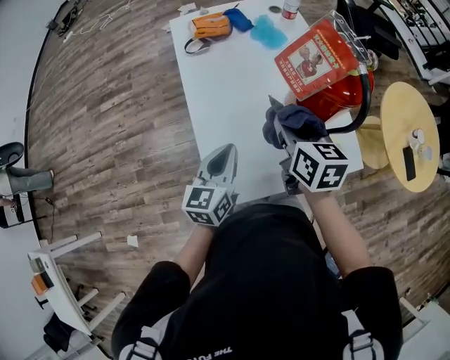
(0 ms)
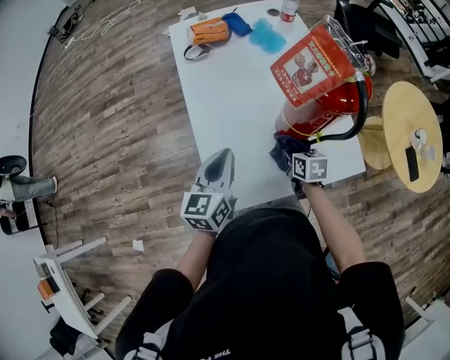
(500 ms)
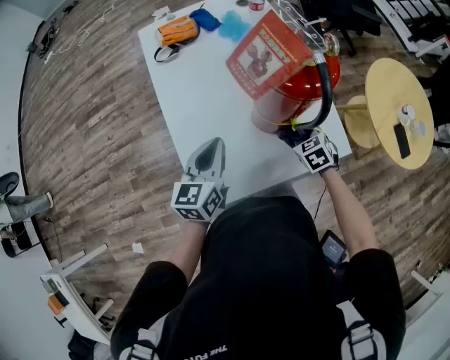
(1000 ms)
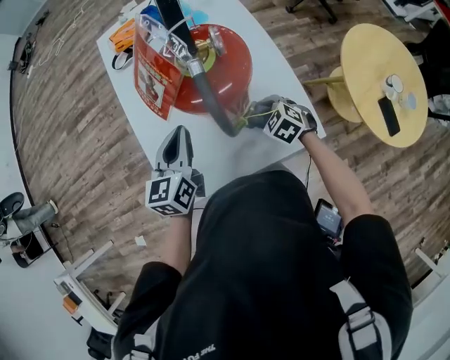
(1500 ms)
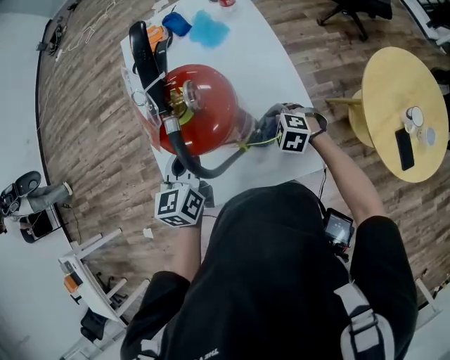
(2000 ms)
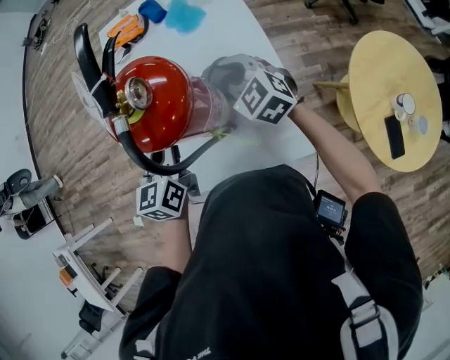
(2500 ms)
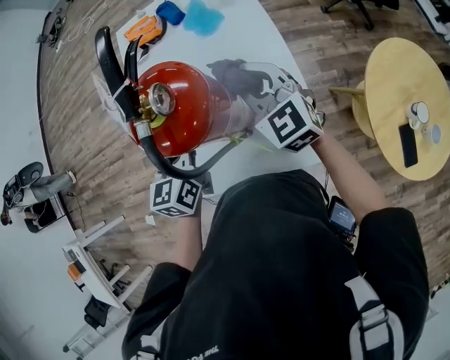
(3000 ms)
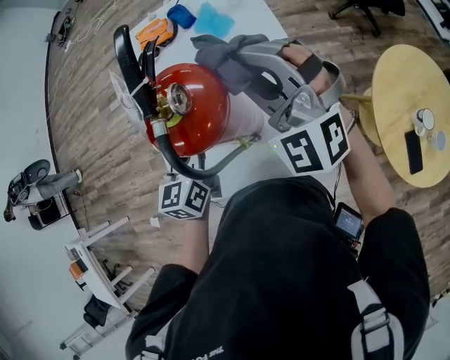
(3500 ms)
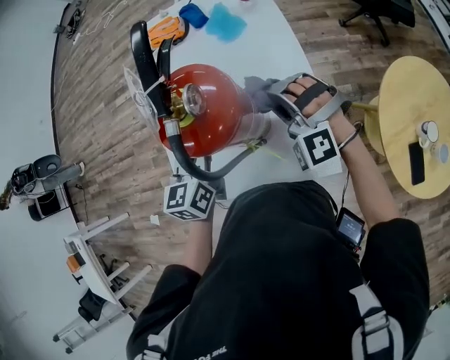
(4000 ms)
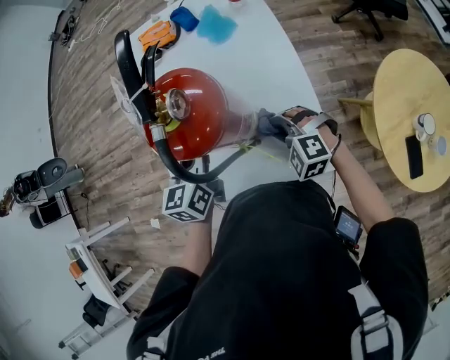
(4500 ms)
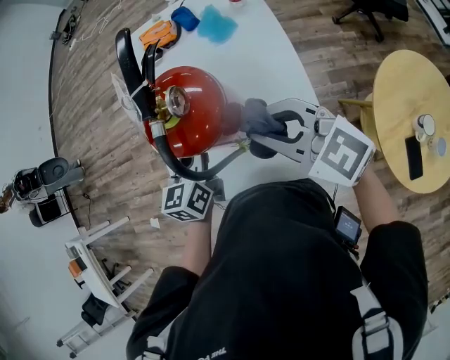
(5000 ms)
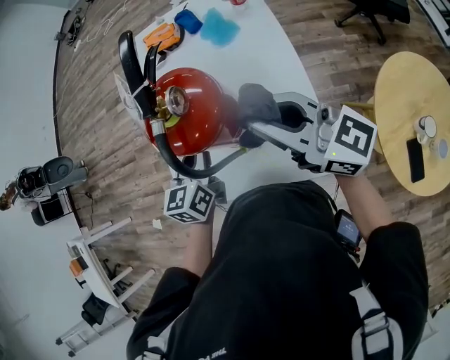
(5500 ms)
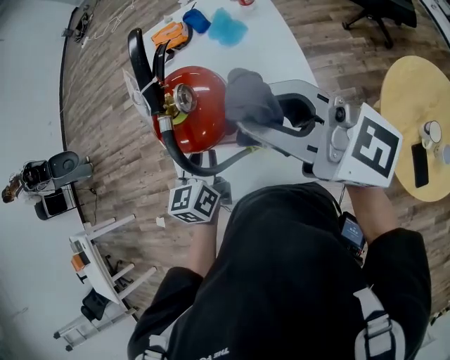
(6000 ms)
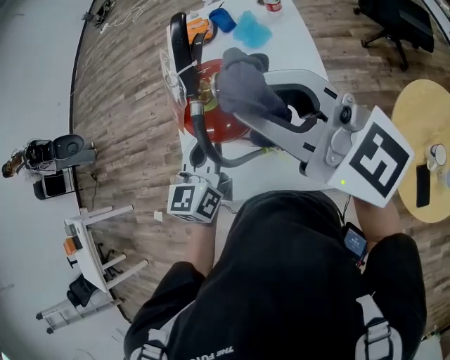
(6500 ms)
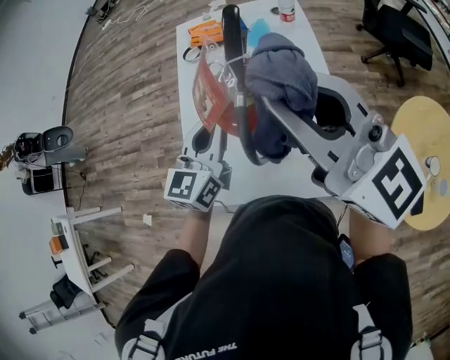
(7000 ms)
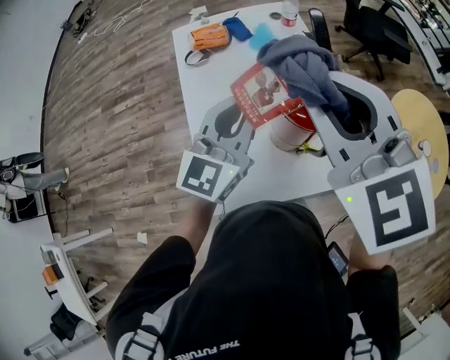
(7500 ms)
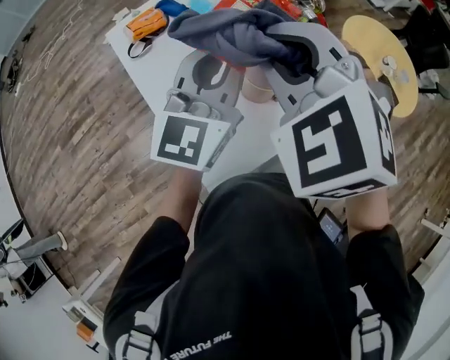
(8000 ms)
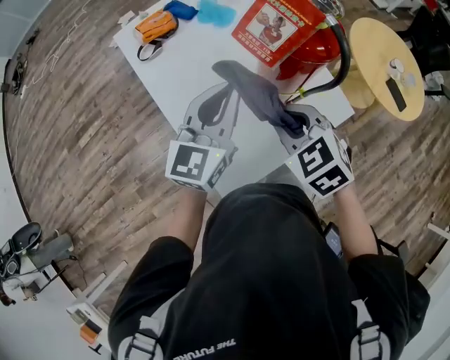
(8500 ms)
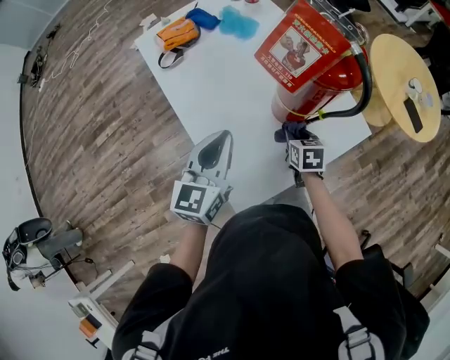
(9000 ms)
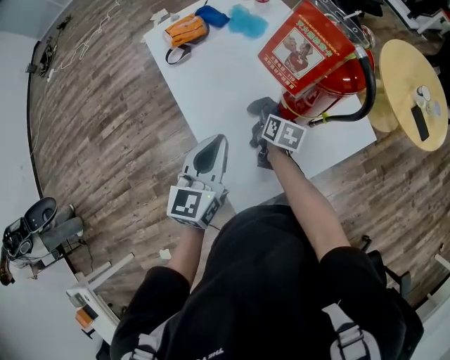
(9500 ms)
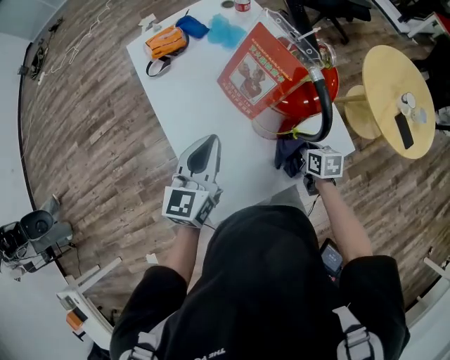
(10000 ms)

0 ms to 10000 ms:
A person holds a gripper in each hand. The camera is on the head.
0 ms to 2000 ms: The left gripper moves approximately 15 cm, while the right gripper is displaced downward by some 25 cm, and rolls counterclockwise, seen from behind, by some 60 degrees.
2000 ms to 4000 ms: The right gripper heads upward, covering about 20 cm, and changes its angle by some 50 degrees.
4000 ms to 6000 ms: The right gripper shifts roughly 25 cm upward, and points its fingers approximately 50 degrees further upward.
6000 ms to 8000 ms: The left gripper goes approximately 20 cm upward, and rotates about 50 degrees, while the right gripper ends up some 20 cm from where it was, and tilts its fingers roughly 50 degrees downward.
8000 ms to 10000 ms: The left gripper goes about 15 cm downward, and swivels about 30 degrees. The right gripper travels downward and to the right by approximately 40 cm, and twists approximately 70 degrees clockwise, seen from behind.

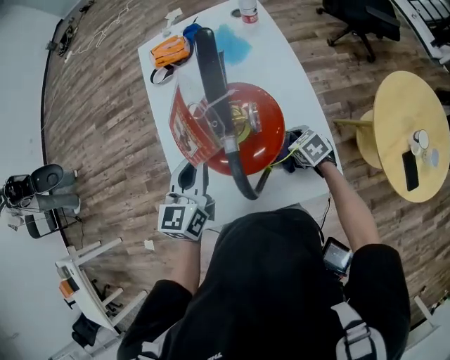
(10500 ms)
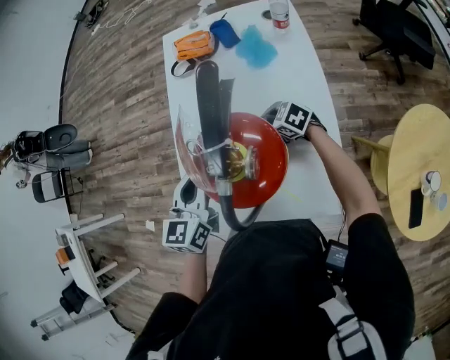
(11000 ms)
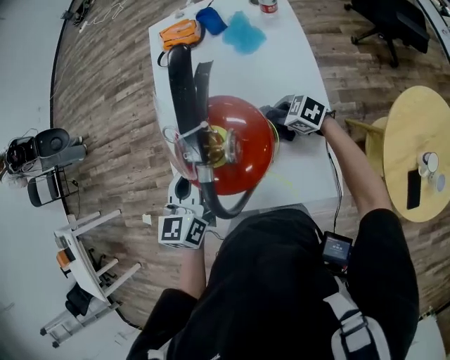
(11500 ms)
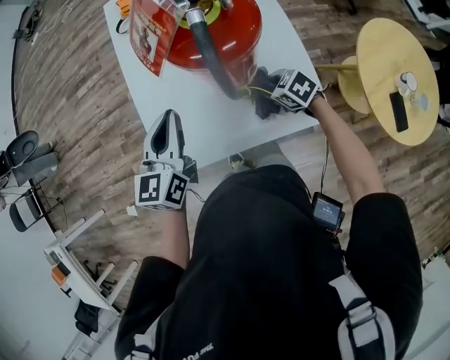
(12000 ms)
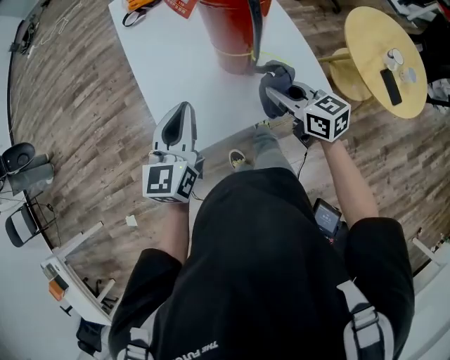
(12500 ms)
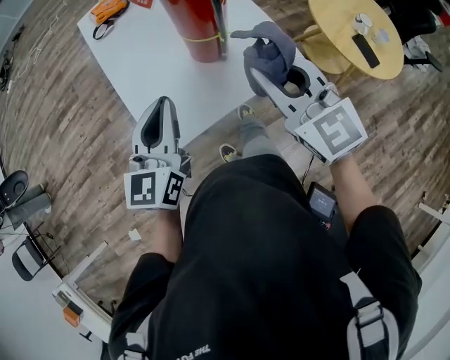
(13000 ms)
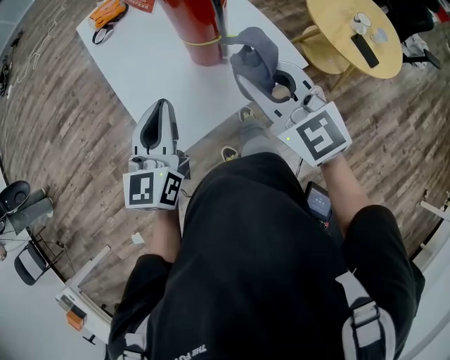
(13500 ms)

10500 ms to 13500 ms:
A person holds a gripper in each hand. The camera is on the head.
10500 ms to 12000 ms: The right gripper travels to the left by approximately 5 cm, and goes forward and returns, some 15 cm each way, while the left gripper shifts roughly 10 cm backward and to the left.
12000 ms to 13500 ms: The left gripper ends up some 10 cm from where it was; the right gripper shifts roughly 30 cm upward, and tips its fingers upward by approximately 40 degrees.

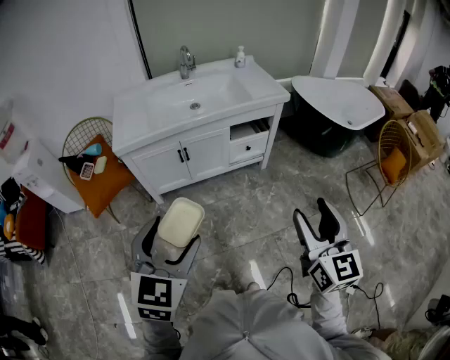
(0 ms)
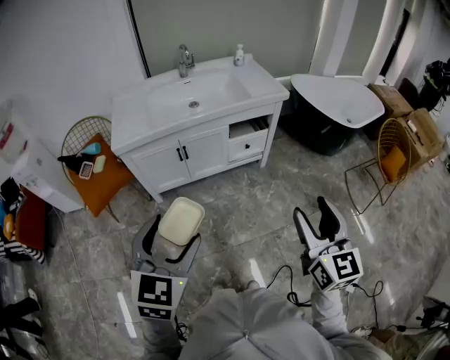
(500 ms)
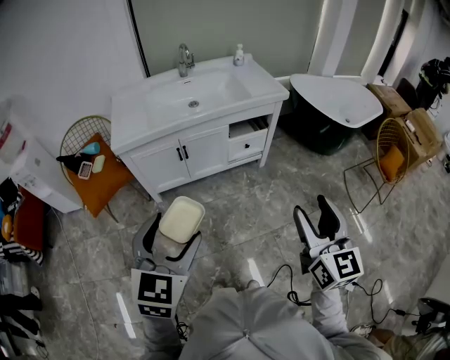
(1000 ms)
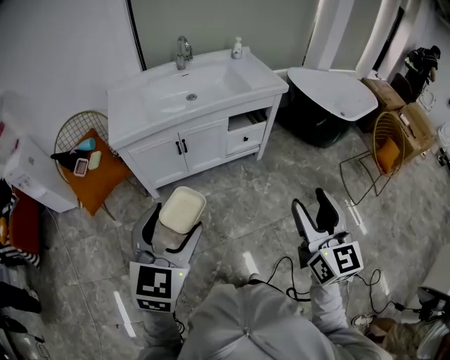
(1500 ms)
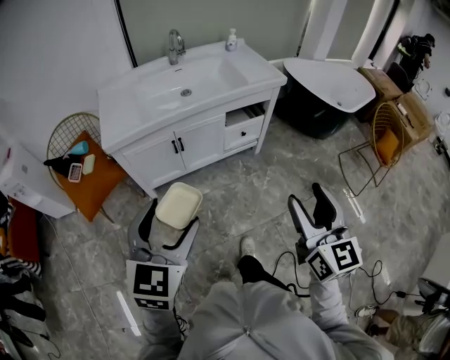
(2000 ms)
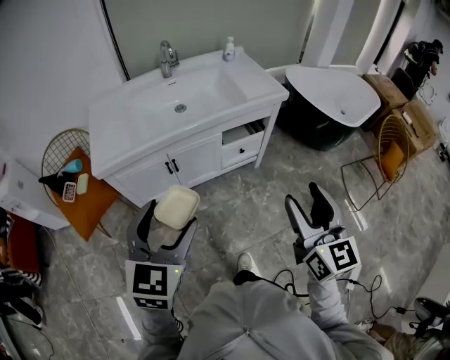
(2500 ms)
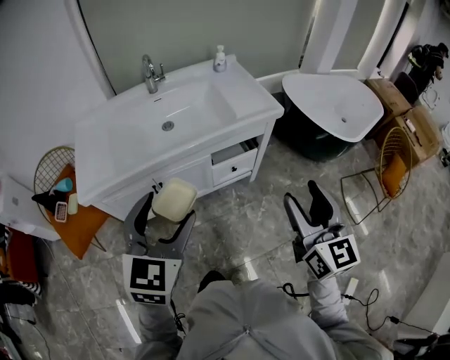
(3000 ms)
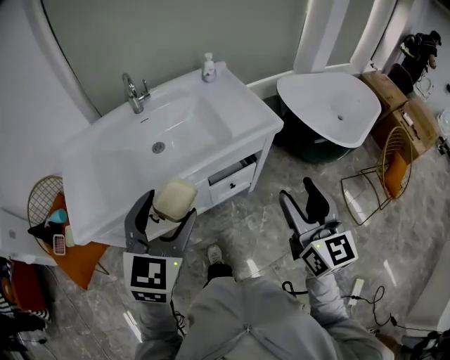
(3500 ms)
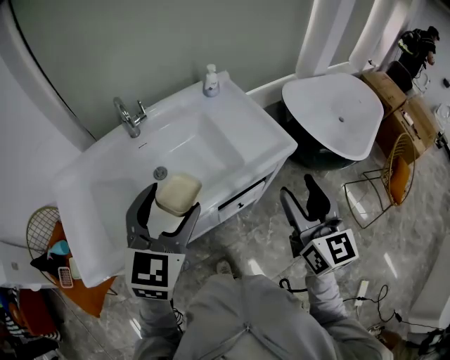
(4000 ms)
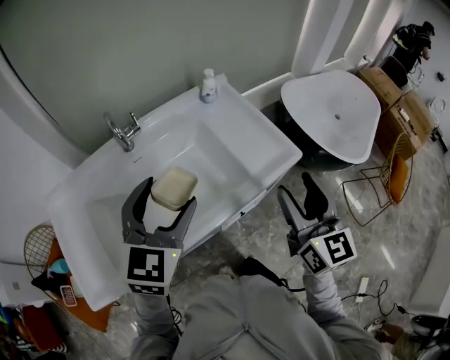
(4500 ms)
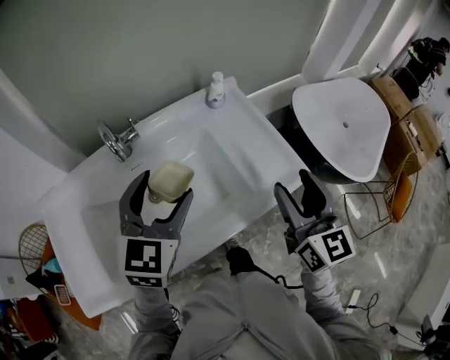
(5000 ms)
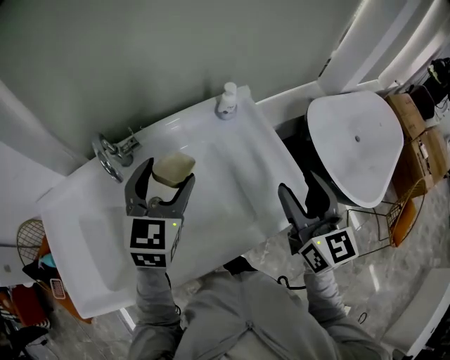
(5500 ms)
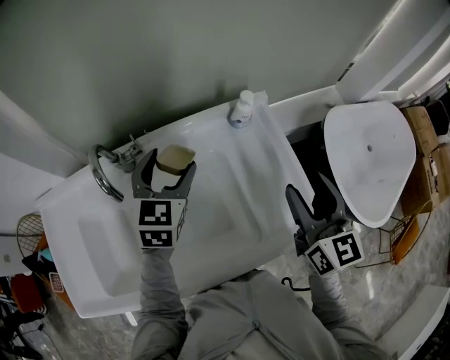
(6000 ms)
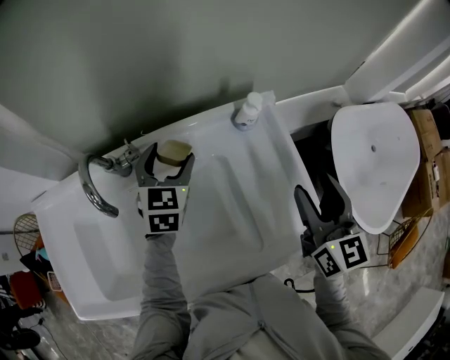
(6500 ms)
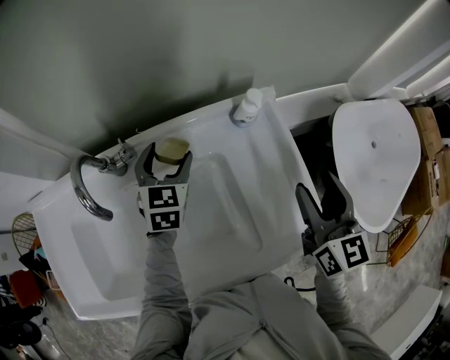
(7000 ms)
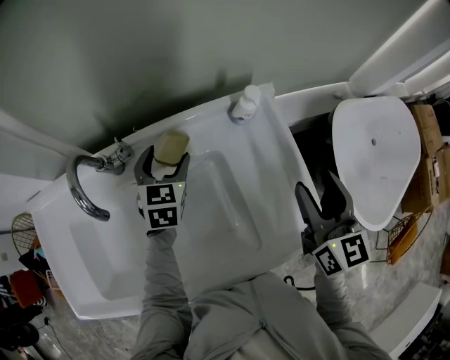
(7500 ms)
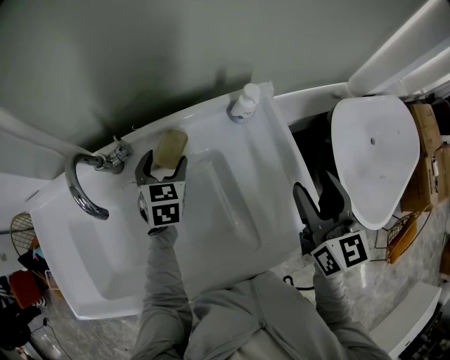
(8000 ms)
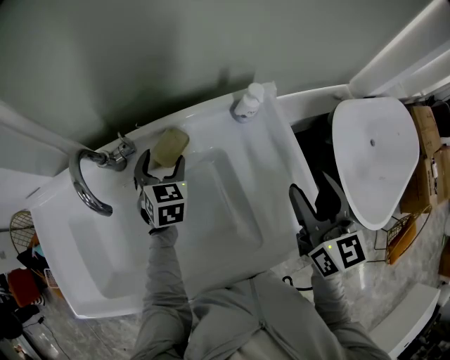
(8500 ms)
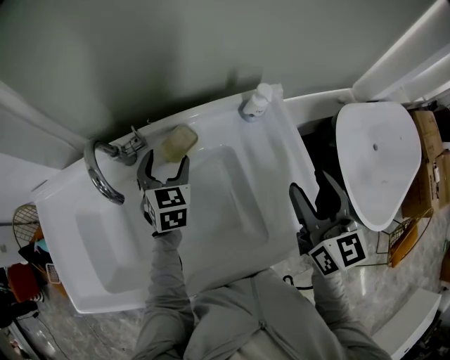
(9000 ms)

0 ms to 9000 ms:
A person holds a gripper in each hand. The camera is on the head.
0 ms to 2000 ms: The right gripper goes some 5 cm to the left. Meanwhile the left gripper heads forward and to the left, covering about 10 cm.
2000 ms to 4500 ms: The two grippers travel together, forward, about 60 cm.
4500 ms to 7000 ms: The left gripper is displaced forward and downward by approximately 40 cm, and rotates roughly 30 degrees, while the right gripper heads forward, covering some 30 cm.
7000 ms to 9000 ms: The left gripper shifts by roughly 5 cm.

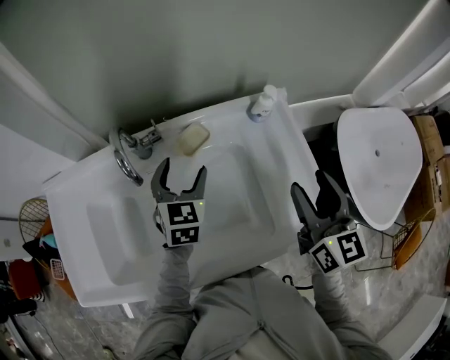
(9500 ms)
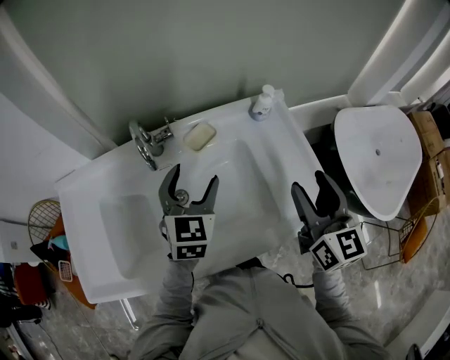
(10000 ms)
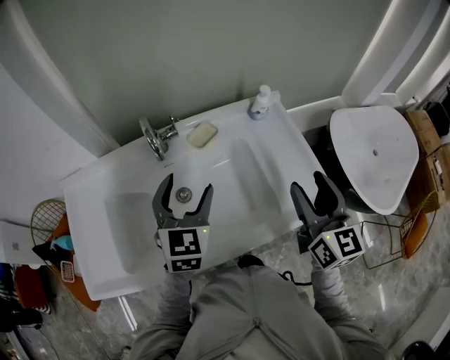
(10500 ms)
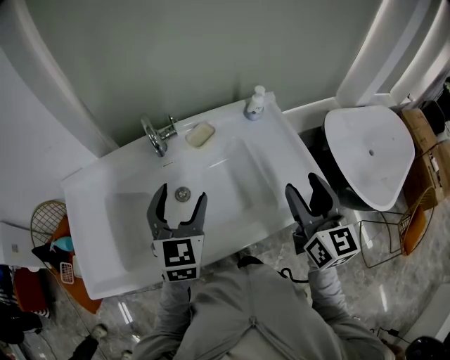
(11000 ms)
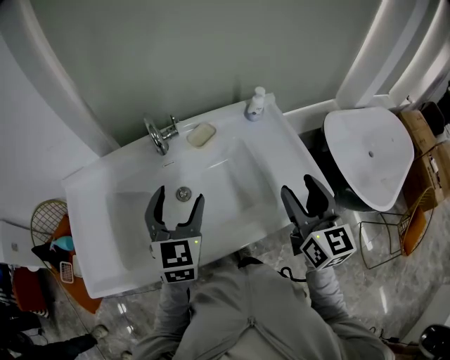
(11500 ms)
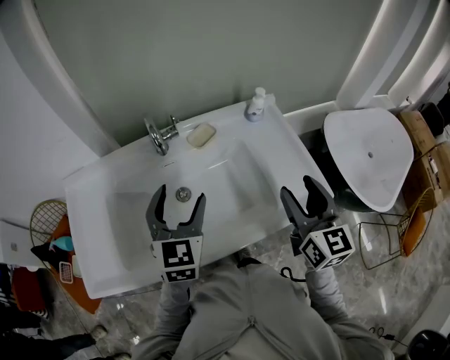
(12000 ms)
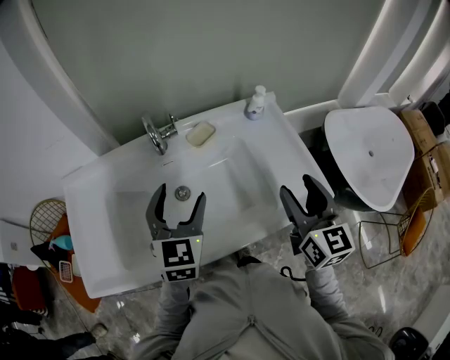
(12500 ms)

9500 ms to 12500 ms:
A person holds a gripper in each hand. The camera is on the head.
9500 ms to 11000 ms: The right gripper shifts about 10 cm backward. Meanwhile the left gripper is displaced backward and upward by approximately 20 cm.
11000 ms to 12500 ms: The grippers stay close to where they were, moving slightly.

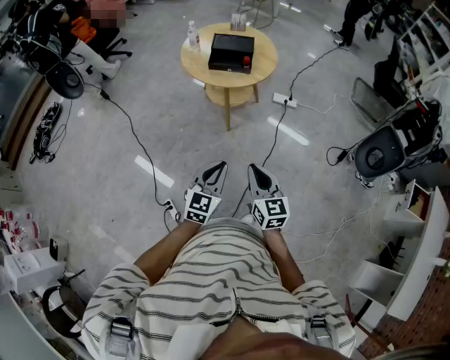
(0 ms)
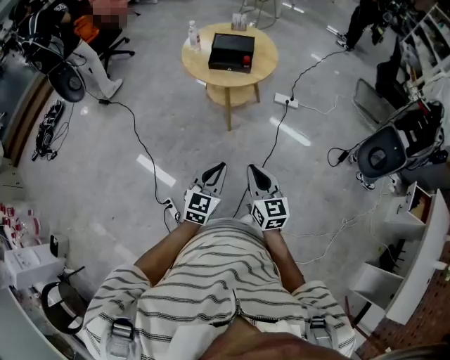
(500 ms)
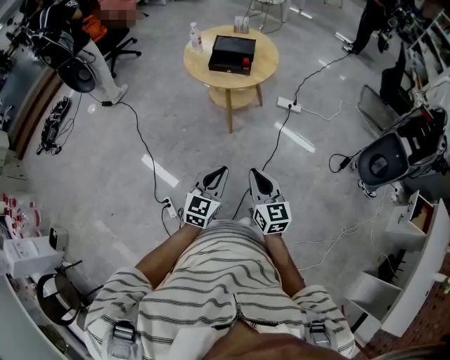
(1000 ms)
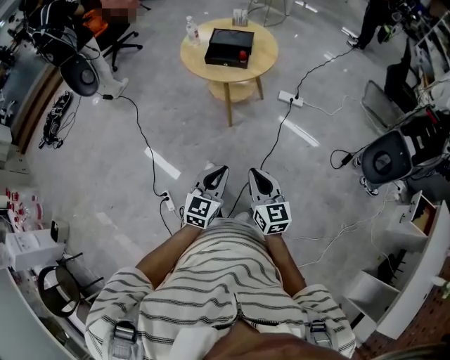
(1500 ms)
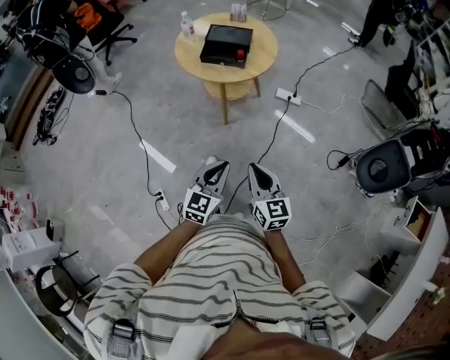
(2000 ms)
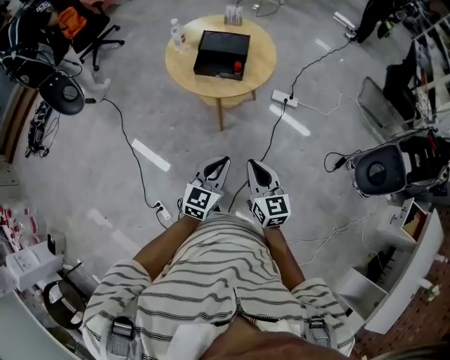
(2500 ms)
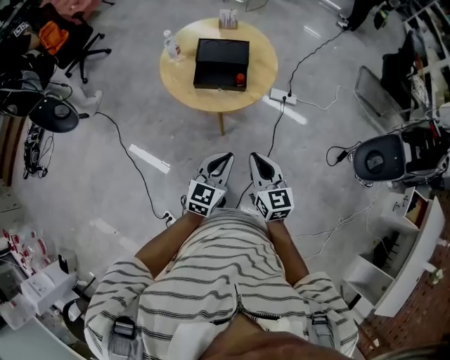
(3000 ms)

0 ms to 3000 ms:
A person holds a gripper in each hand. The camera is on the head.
0 ms to 1500 ms: The grippers both shift to the right by about 10 cm.
1500 ms to 3000 ms: Both grippers travel together forward, approximately 30 cm.
